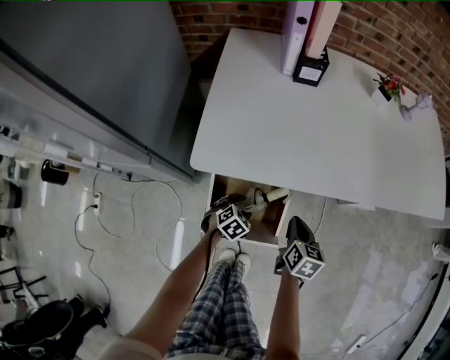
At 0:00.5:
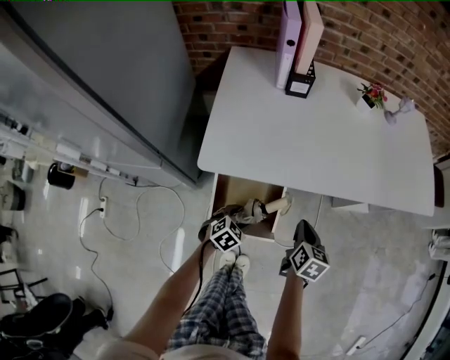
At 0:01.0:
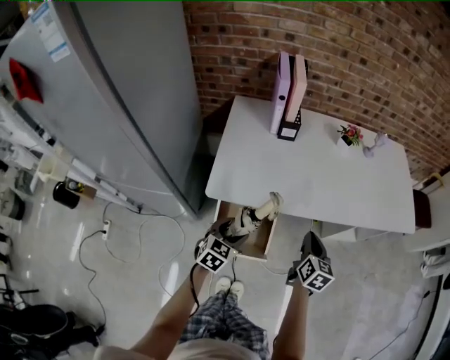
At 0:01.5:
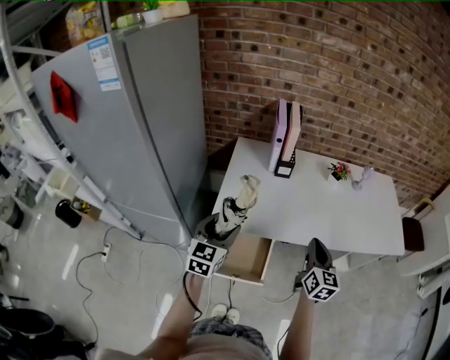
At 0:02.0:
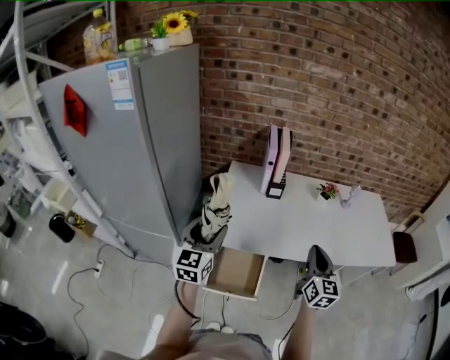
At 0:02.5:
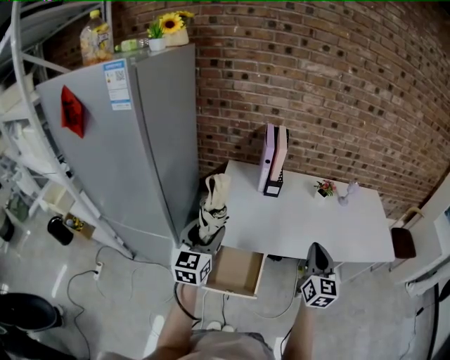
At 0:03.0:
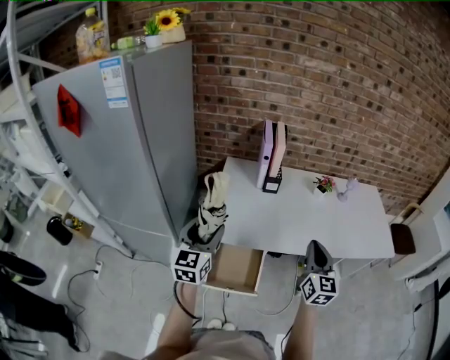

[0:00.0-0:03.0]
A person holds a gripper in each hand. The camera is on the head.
0:00.0 to 0:01.5: Both grippers travel together upward, approximately 50 cm. The right gripper turns by approximately 30 degrees. Meanwhile the left gripper angles its fingers upward, by about 50 degrees.
0:01.5 to 0:03.0: Both grippers travel together upward, roughly 10 cm.

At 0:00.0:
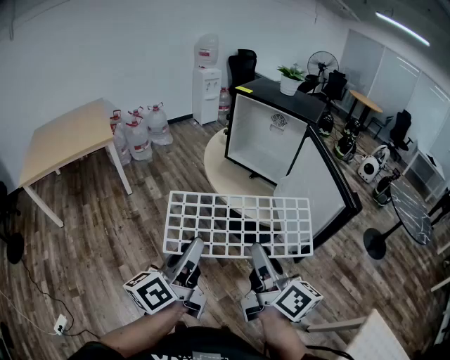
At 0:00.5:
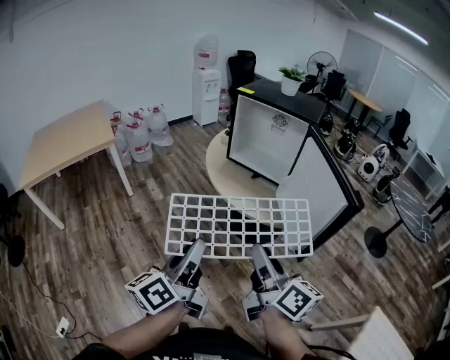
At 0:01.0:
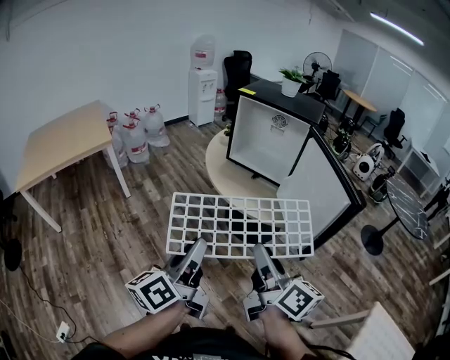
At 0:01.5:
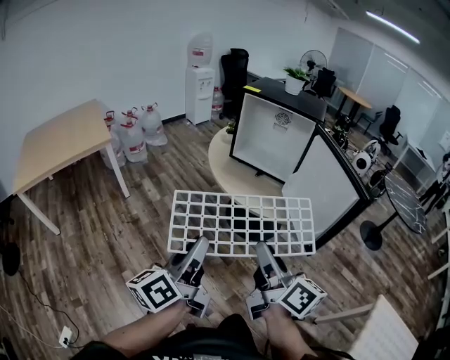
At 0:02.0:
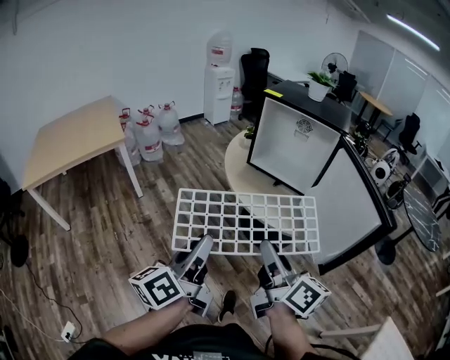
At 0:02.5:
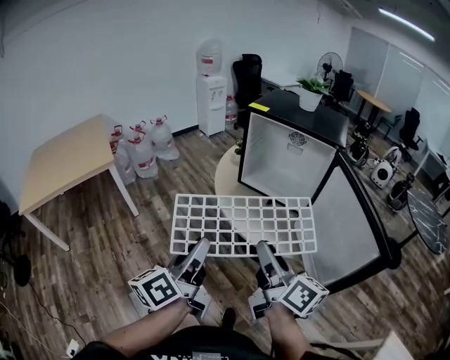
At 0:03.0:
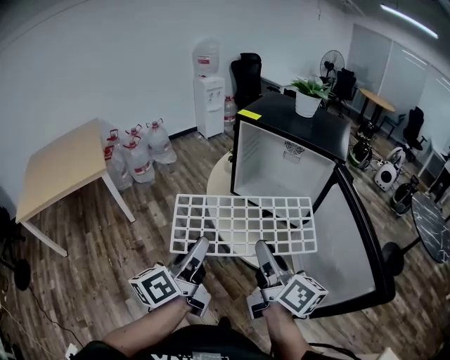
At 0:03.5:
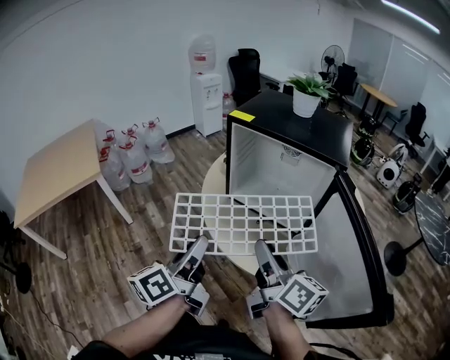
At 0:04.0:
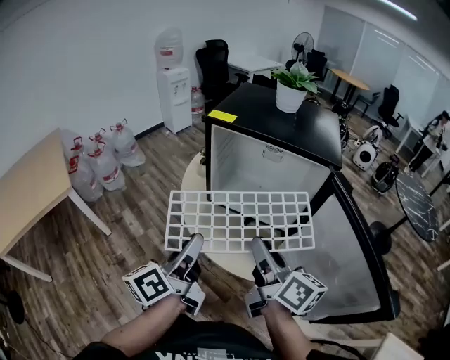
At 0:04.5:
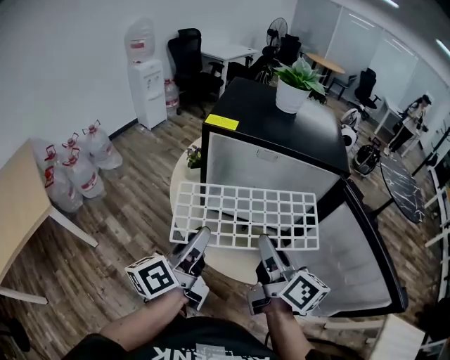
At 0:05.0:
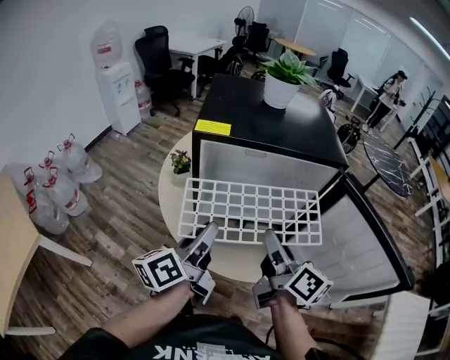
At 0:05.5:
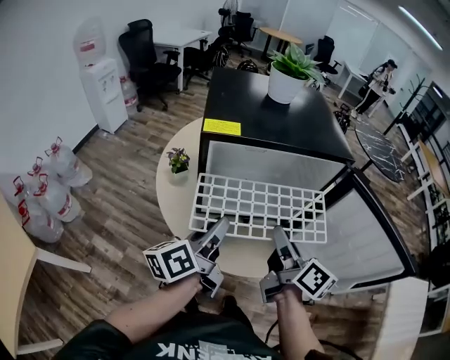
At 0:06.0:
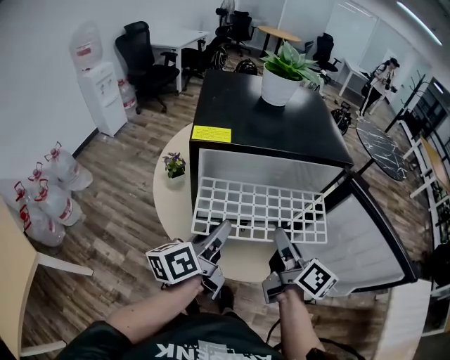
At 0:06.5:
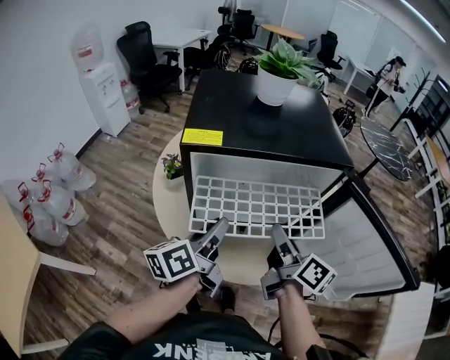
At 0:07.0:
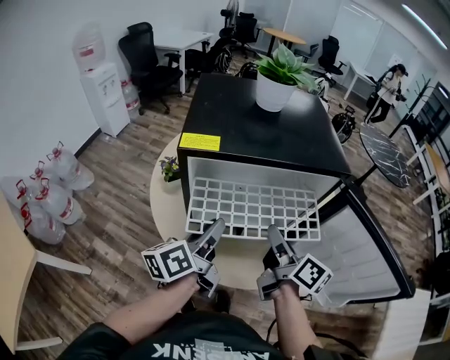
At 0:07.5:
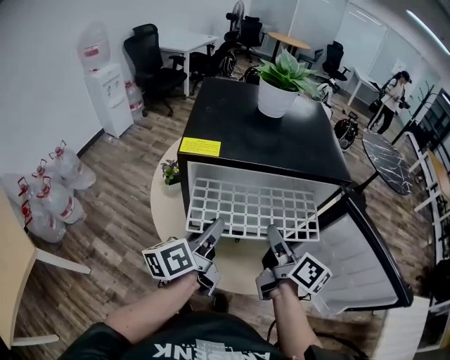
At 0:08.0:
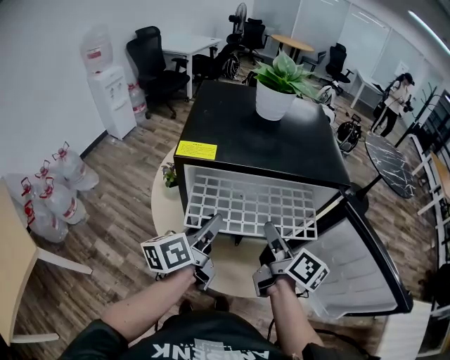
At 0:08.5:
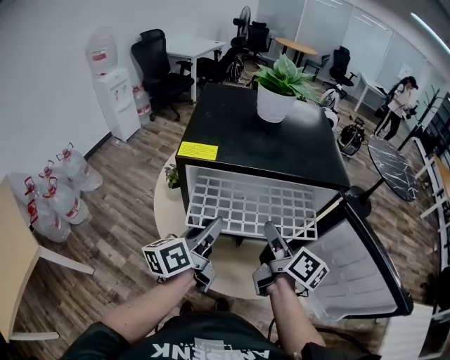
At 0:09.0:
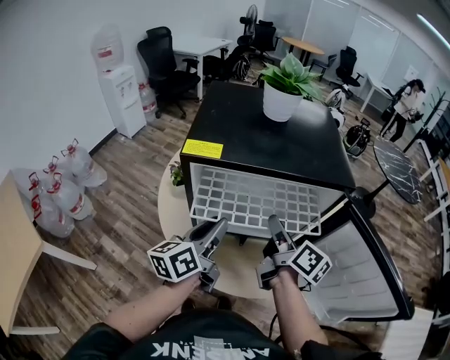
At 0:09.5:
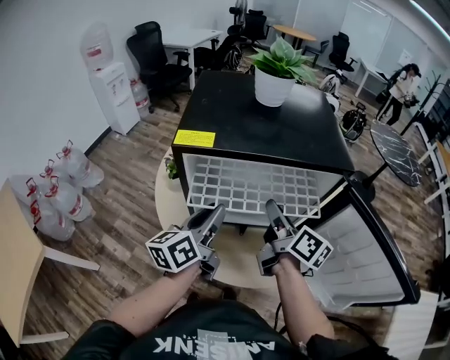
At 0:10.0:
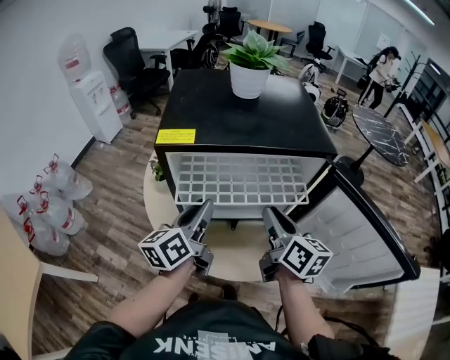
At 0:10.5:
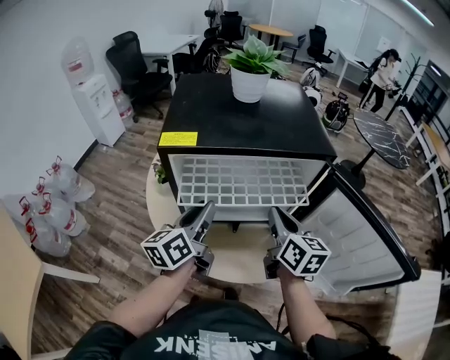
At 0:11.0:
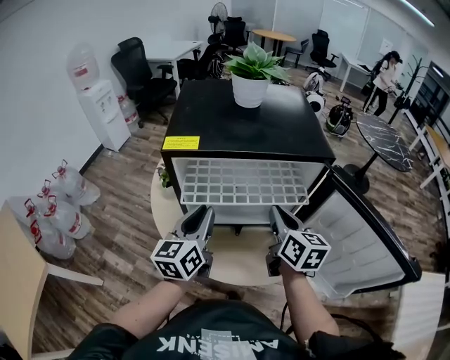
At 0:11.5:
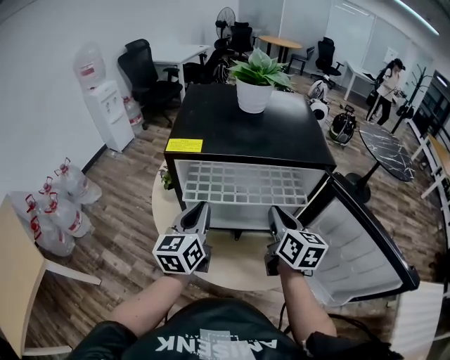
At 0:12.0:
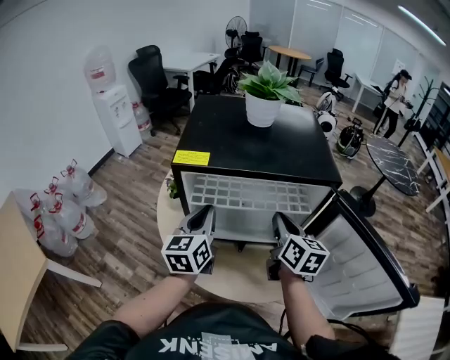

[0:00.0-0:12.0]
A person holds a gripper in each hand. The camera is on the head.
0:00.0 to 0:02.0: Both grippers move to the left and forward, some 10 cm.
0:02.0 to 0:04.0: Both grippers travel together forward, roughly 30 cm.
0:04.0 to 0:06.0: The left gripper moves roughly 20 cm, and changes its angle by some 30 degrees. The right gripper changes place by about 15 cm, and turns by approximately 30 degrees.
0:06.0 to 0:08.0: The two grippers go roughly 5 cm forward.
0:08.0 to 0:10.0: The grippers make only small movements.
0:10.0 to 0:12.0: The left gripper turns by some 30 degrees, and closes its fingers. The right gripper moves forward, some 5 cm.

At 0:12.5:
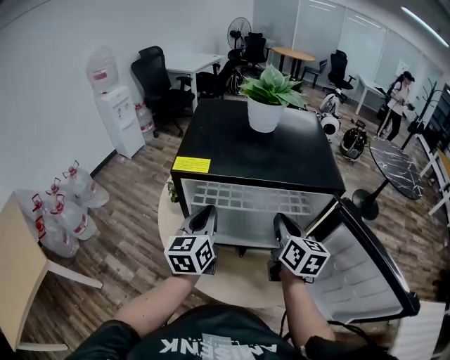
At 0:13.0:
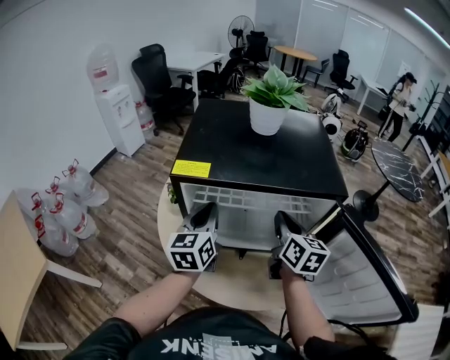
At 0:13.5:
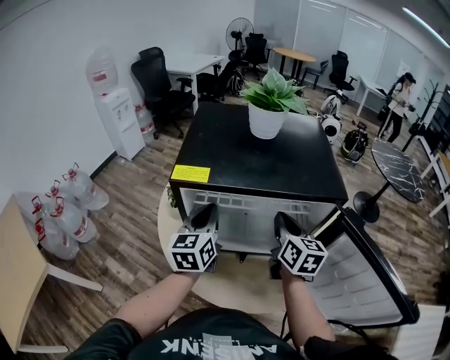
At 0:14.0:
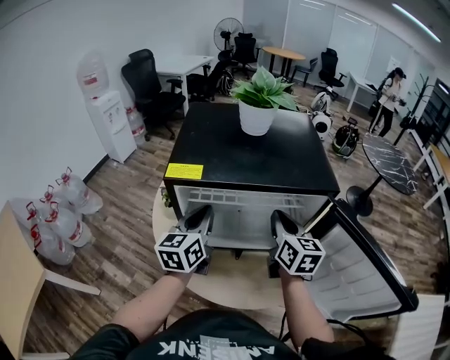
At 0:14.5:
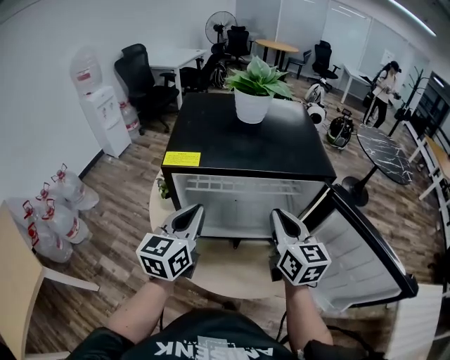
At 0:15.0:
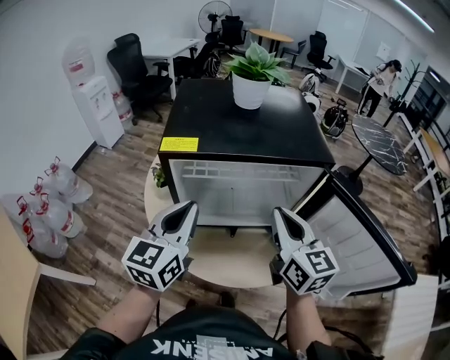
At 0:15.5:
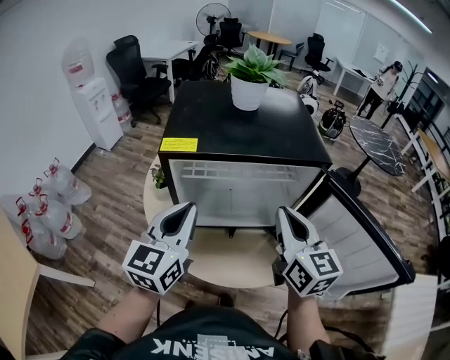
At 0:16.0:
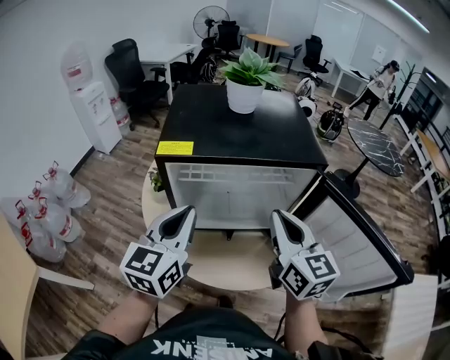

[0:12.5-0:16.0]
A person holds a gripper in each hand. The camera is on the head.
0:12.5 to 0:14.5: The right gripper ends up roughly 5 cm from where it was. The left gripper changes place by about 5 cm.
0:14.5 to 0:16.0: Both grippers move backward, some 5 cm.

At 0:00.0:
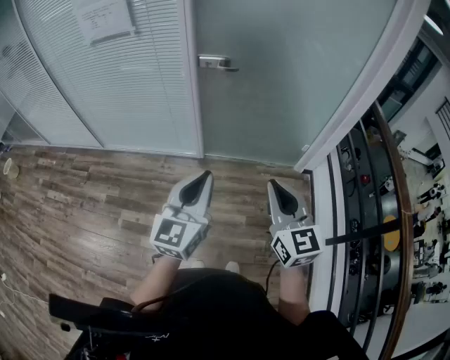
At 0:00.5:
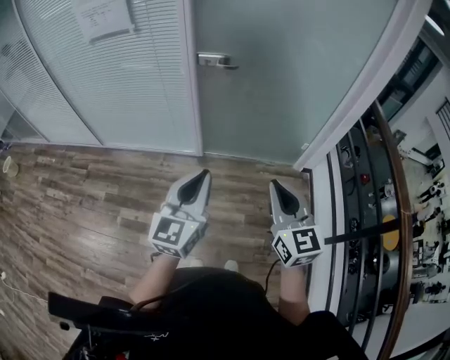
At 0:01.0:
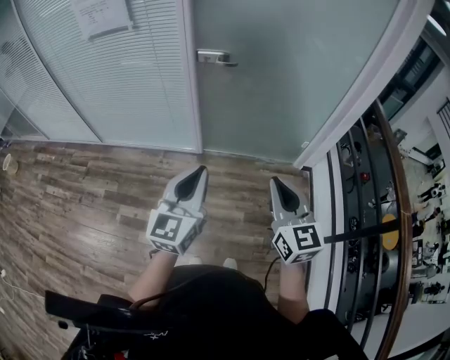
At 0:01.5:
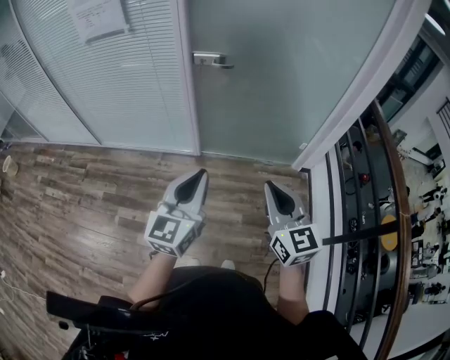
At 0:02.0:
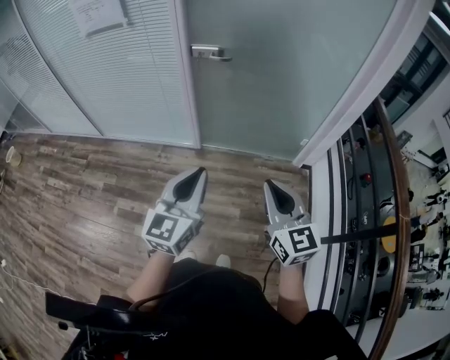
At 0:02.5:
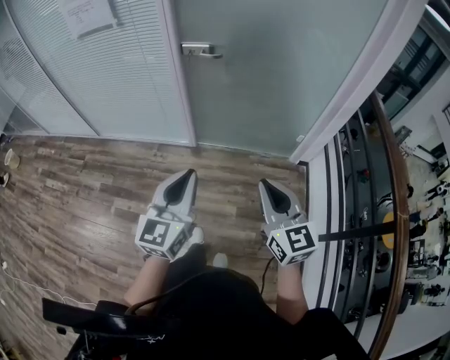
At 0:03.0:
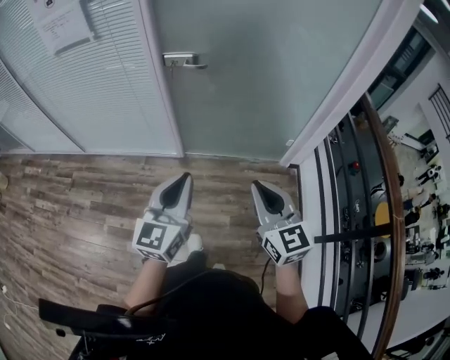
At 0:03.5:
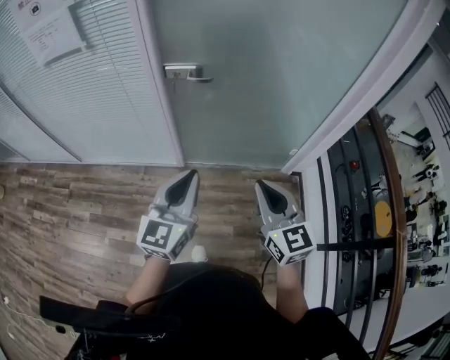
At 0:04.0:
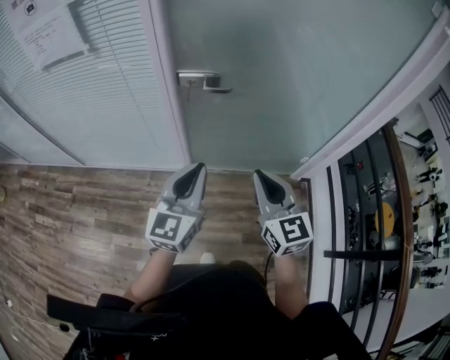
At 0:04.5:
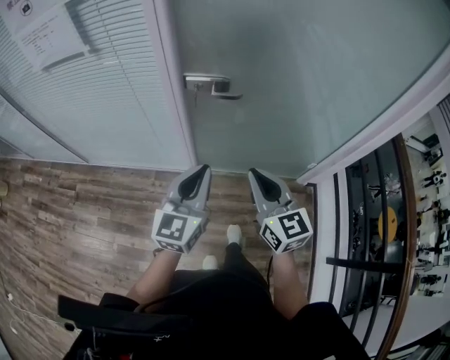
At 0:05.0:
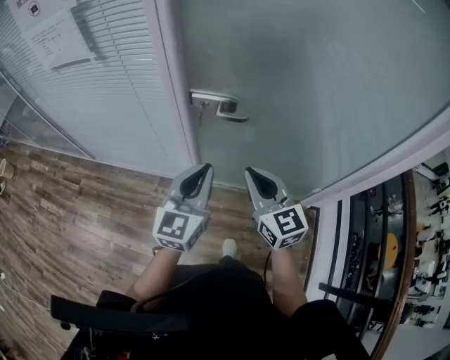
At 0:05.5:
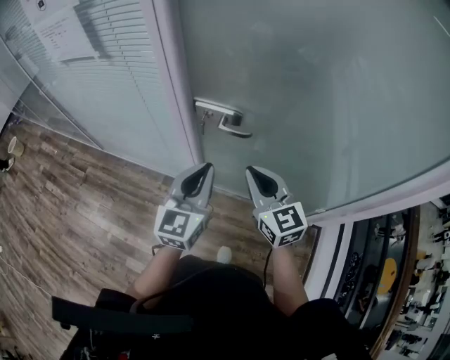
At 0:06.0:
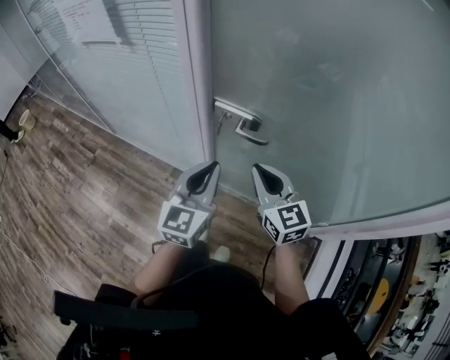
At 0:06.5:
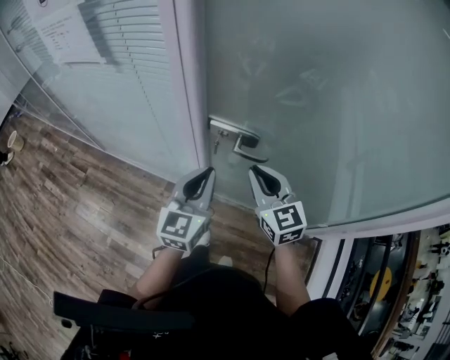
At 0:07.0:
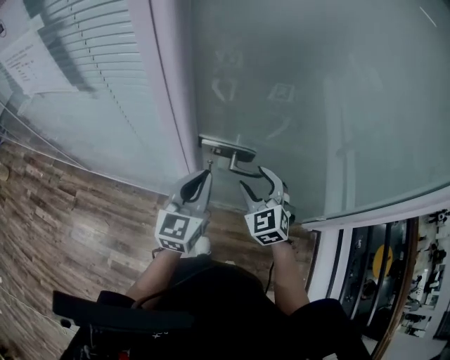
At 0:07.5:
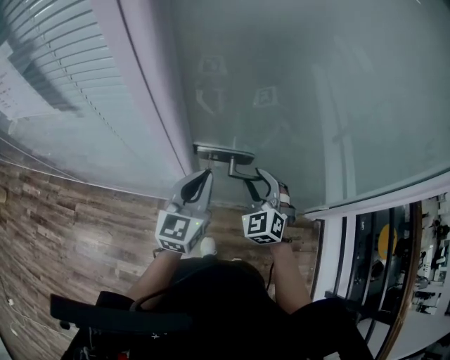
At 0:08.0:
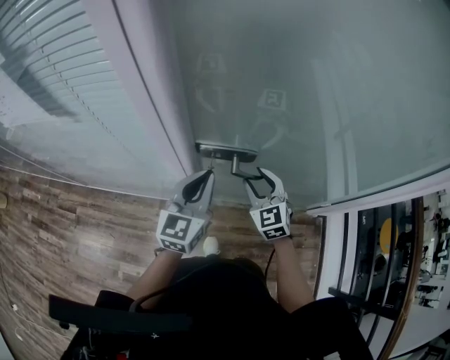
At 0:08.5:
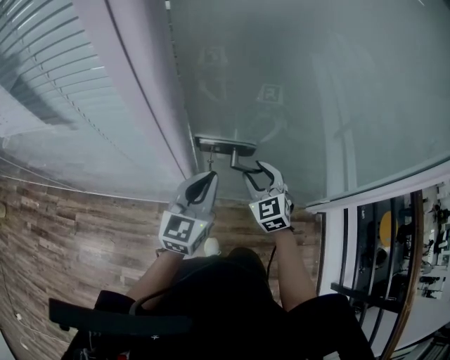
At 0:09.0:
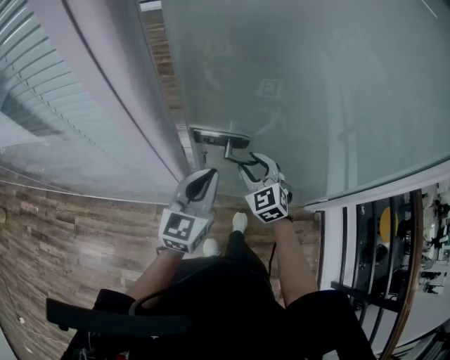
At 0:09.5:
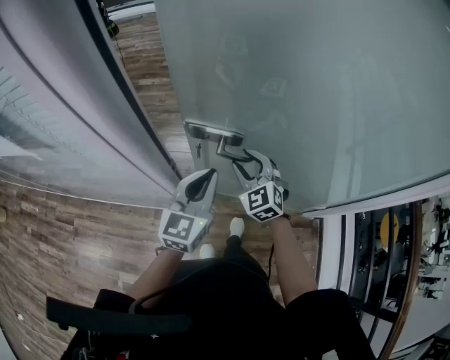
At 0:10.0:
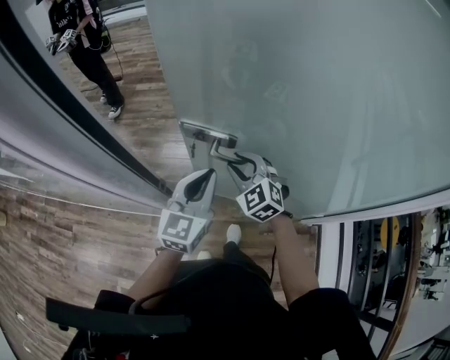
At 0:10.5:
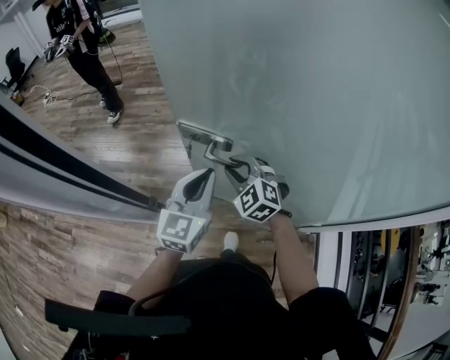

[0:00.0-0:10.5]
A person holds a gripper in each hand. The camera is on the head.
0:00.0 to 0:02.0: The right gripper changes place by roughly 5 cm.
0:02.0 to 0:04.0: Both grippers move forward, roughly 25 cm.
0:04.0 to 0:06.5: Both grippers move forward, approximately 25 cm. The right gripper rotates some 20 degrees.
0:06.5 to 0:08.5: The left gripper heads forward, covering approximately 10 cm, while the right gripper travels downward and forward by roughly 15 cm, swivels roughly 30 degrees, and opens.
0:08.5 to 0:10.5: The left gripper is displaced forward and to the right by some 15 cm. The right gripper goes approximately 15 cm forward, and swivels about 20 degrees.
